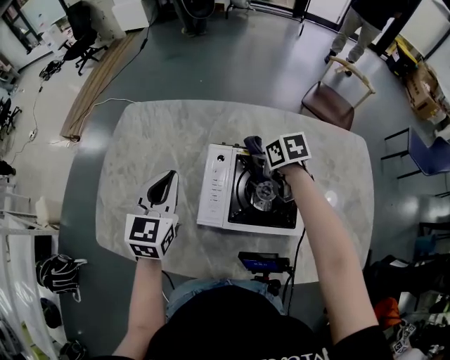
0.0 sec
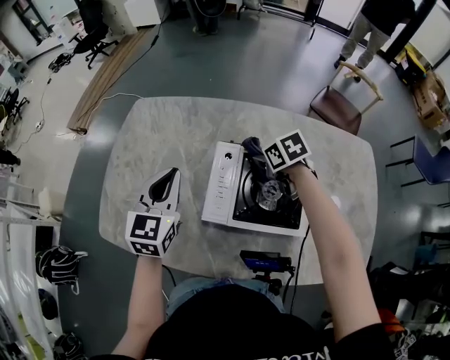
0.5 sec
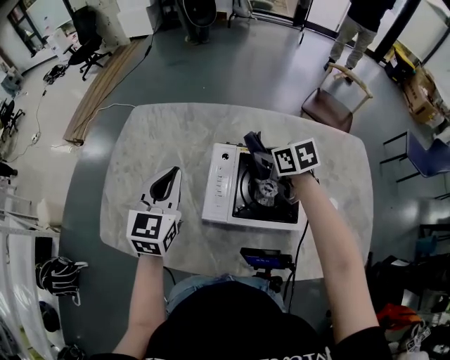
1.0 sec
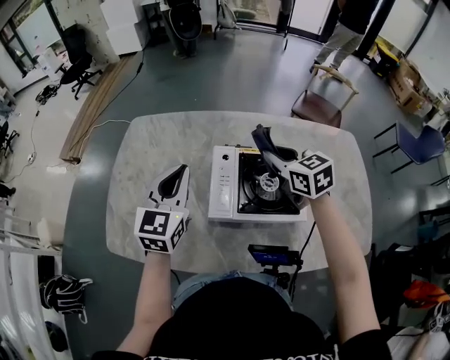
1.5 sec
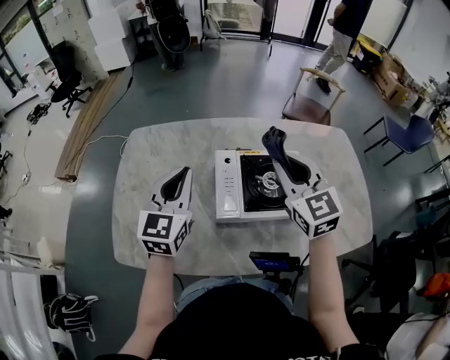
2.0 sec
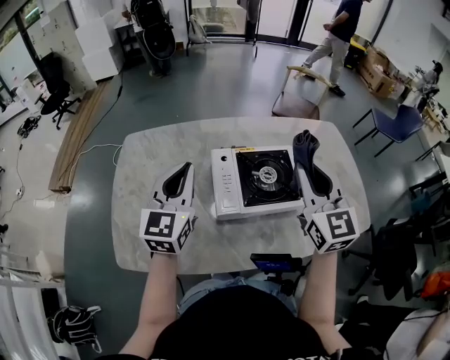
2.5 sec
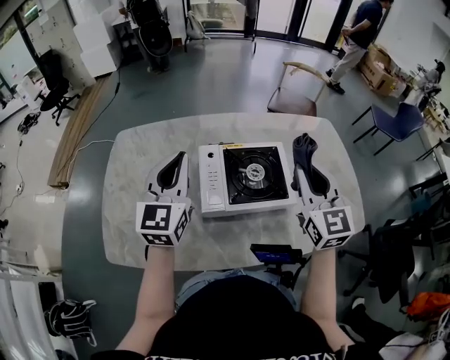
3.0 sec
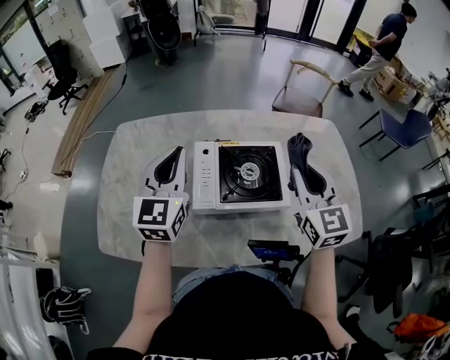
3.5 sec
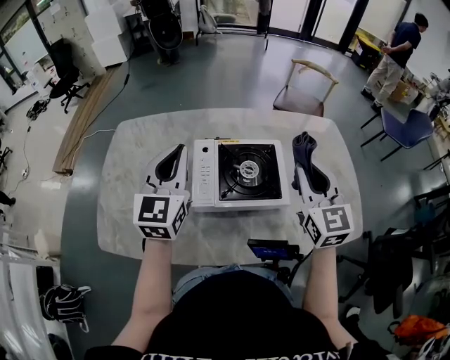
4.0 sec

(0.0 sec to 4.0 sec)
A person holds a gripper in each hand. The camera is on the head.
0.0 sec - 2.0 sec: The right gripper goes approximately 25 cm upward, and angles its fingers upward, by roughly 40 degrees, while the left gripper travels upward by some 5 cm.
2.0 sec - 4.0 sec: The right gripper goes about 15 cm to the right. Meanwhile the left gripper heads to the right, covering approximately 5 cm.

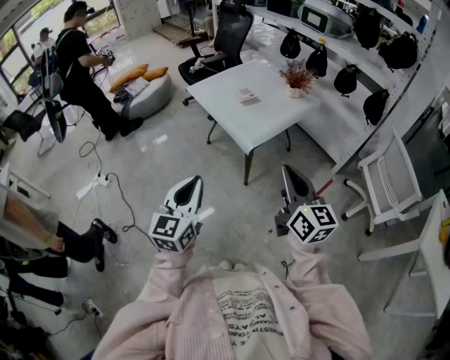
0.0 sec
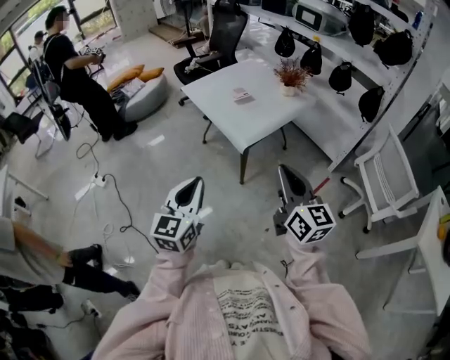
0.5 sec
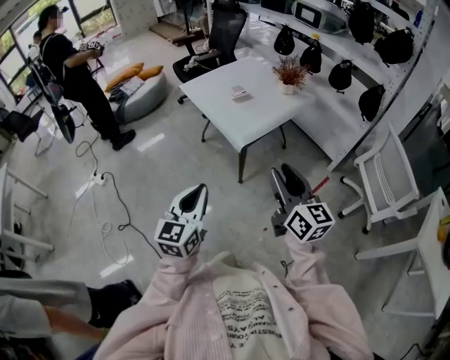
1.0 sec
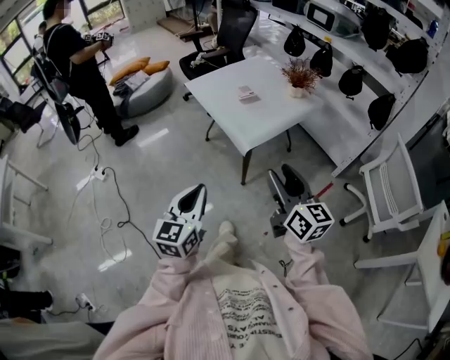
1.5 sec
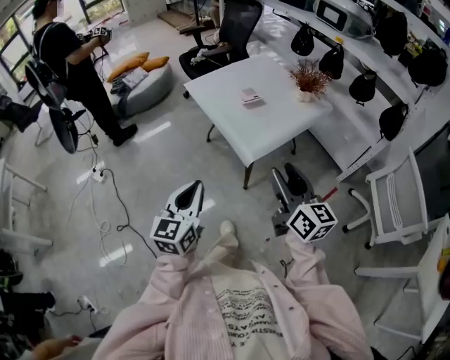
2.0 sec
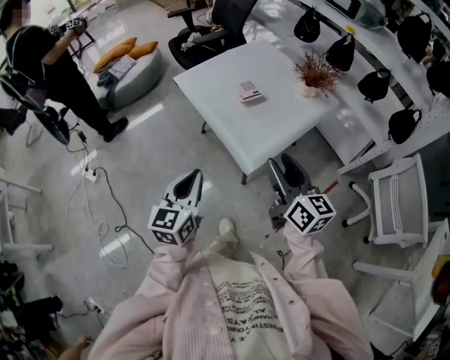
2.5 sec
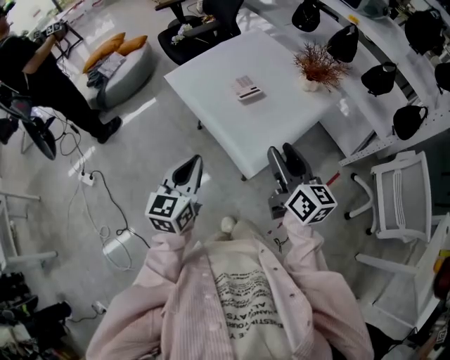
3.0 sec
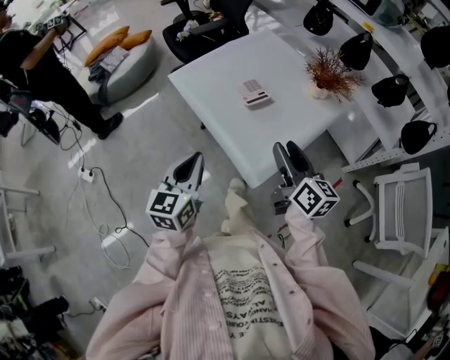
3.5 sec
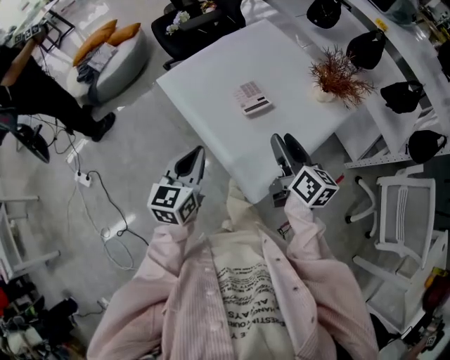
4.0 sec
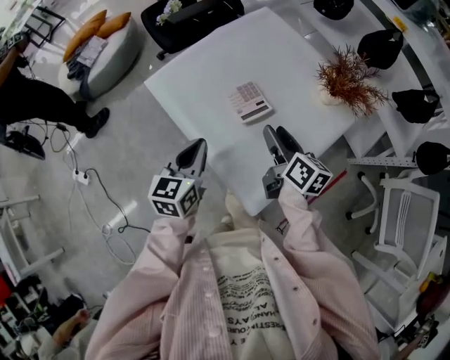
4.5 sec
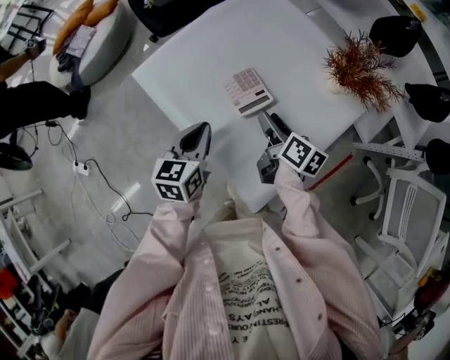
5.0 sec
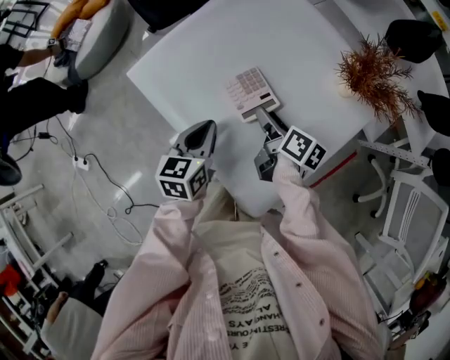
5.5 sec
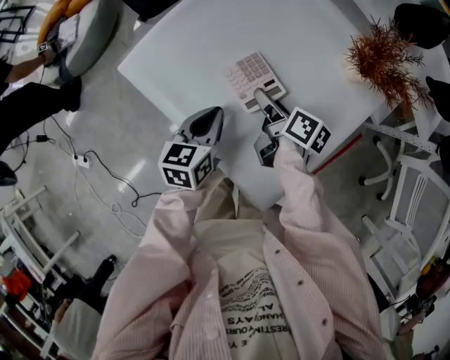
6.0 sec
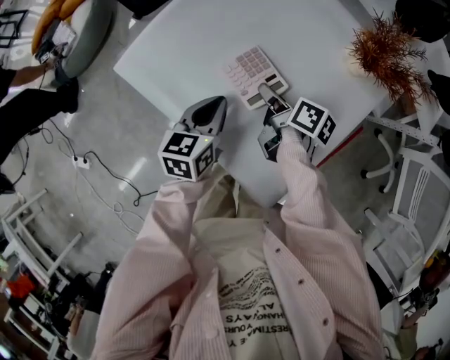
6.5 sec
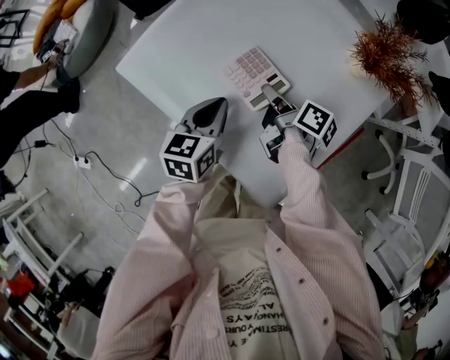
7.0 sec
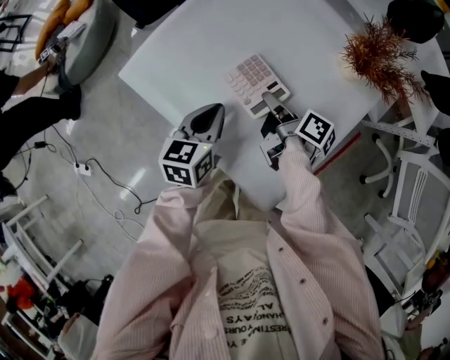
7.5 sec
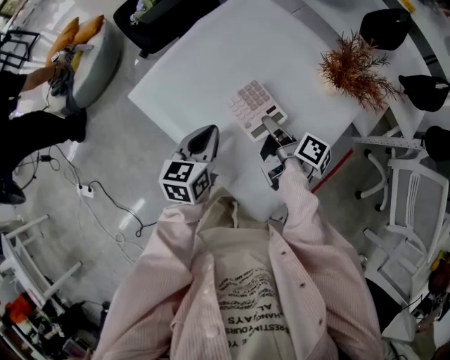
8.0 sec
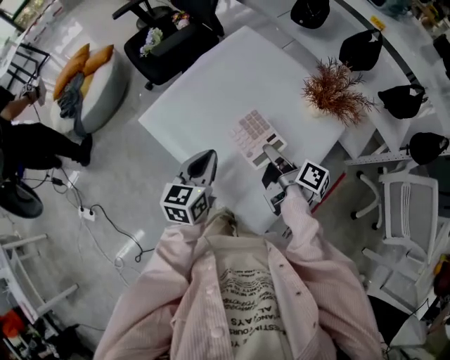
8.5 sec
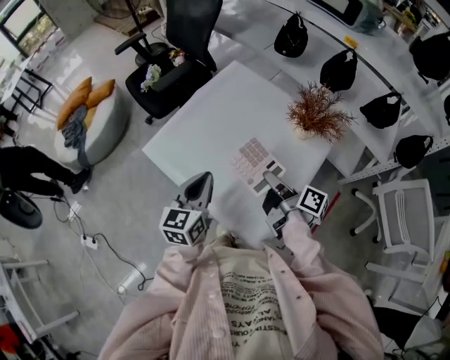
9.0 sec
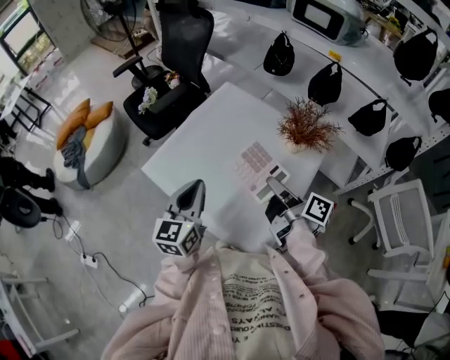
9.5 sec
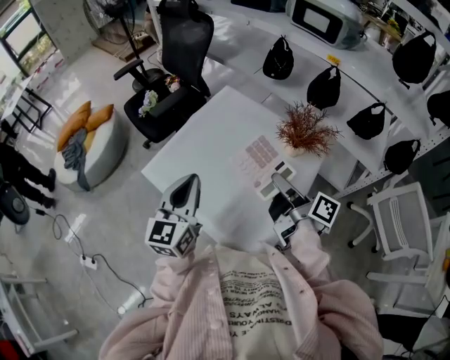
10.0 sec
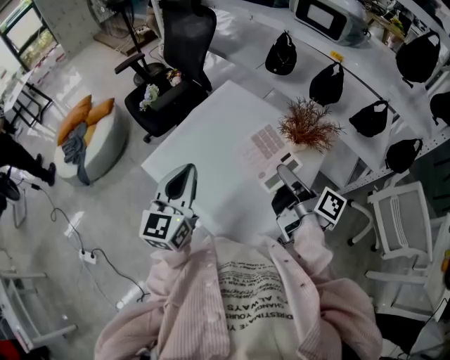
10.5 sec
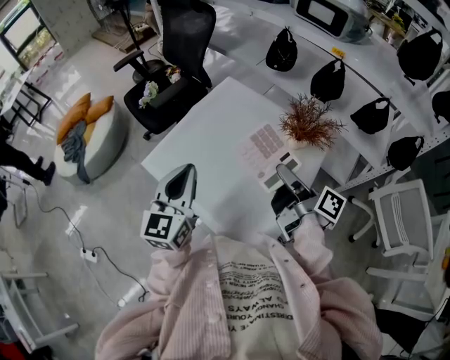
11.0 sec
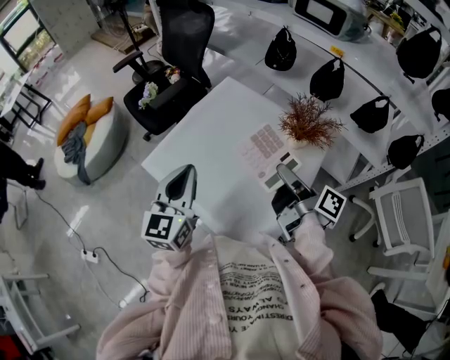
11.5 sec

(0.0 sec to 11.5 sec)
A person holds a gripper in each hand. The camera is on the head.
0.0 sec - 2.0 sec: The two grippers go about 15 cm forward and downward. The right gripper opens its fingers.
2.0 sec - 4.0 sec: The two grippers go approximately 35 cm forward. The right gripper turns by about 20 degrees.
4.0 sec - 6.0 sec: The left gripper travels forward and downward by about 25 cm, and turns by roughly 20 degrees; the right gripper is displaced downward and forward by about 25 cm, and turns by about 30 degrees.
6.0 sec - 7.5 sec: The right gripper closes.
7.5 sec - 9.5 sec: The left gripper is displaced upward by some 20 cm, and swivels approximately 30 degrees. The right gripper moves upward and backward, approximately 25 cm.
9.5 sec - 11.5 sec: The left gripper goes some 5 cm upward.

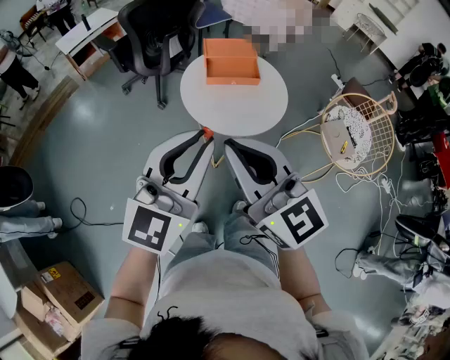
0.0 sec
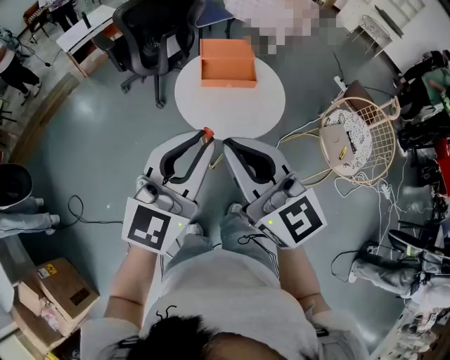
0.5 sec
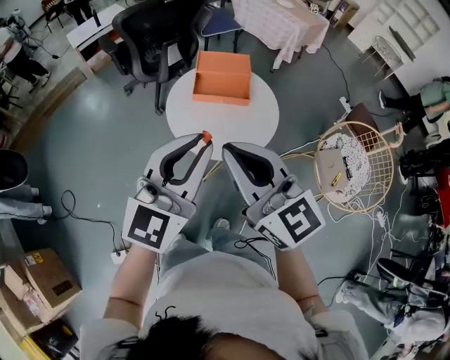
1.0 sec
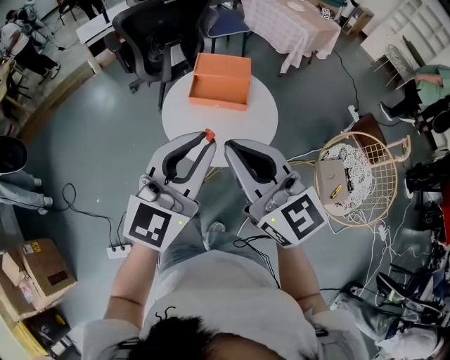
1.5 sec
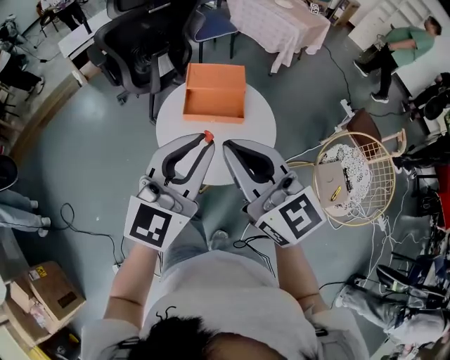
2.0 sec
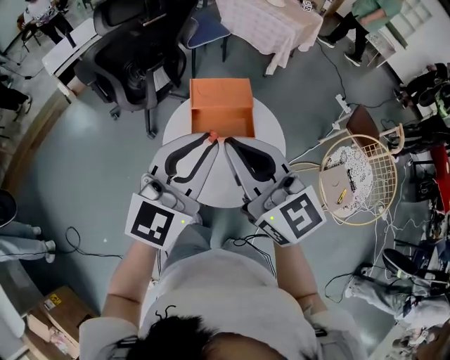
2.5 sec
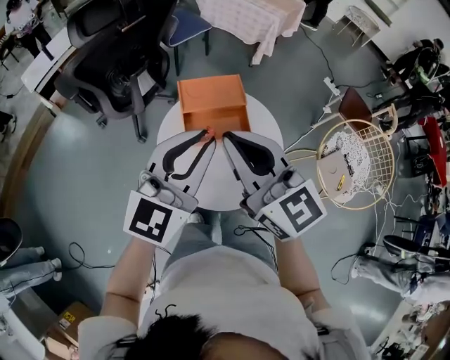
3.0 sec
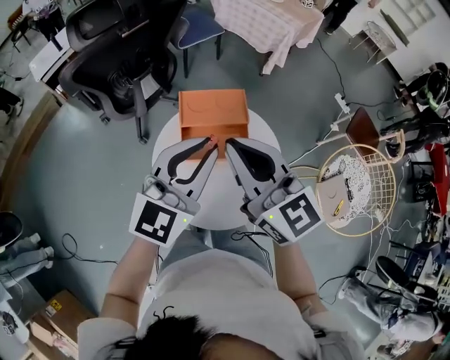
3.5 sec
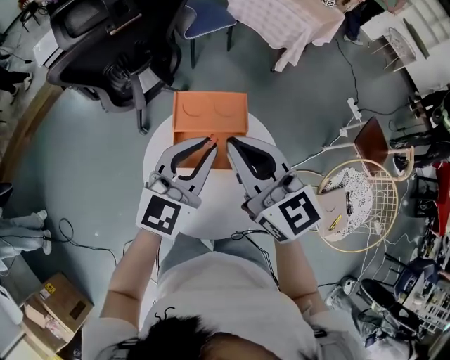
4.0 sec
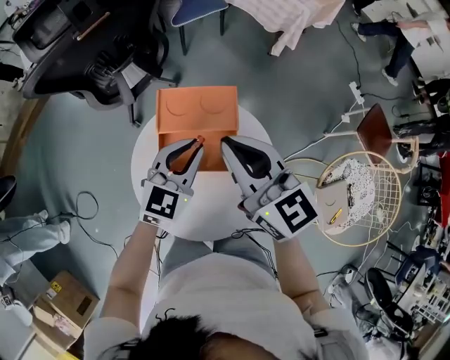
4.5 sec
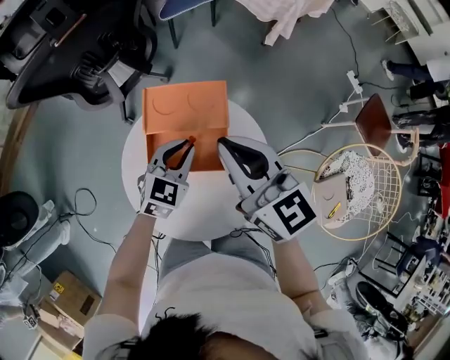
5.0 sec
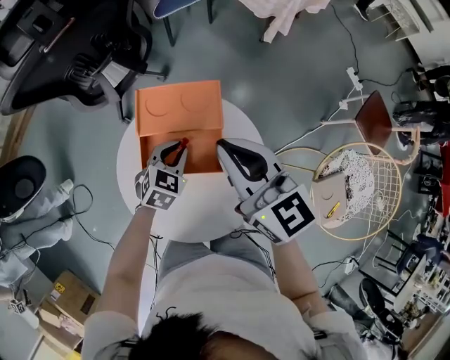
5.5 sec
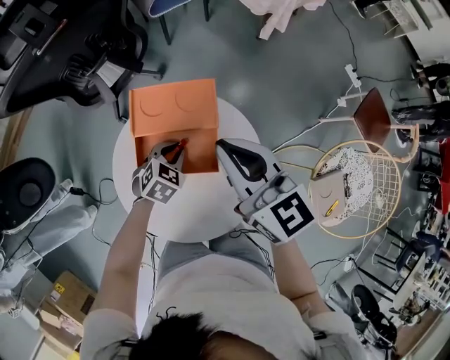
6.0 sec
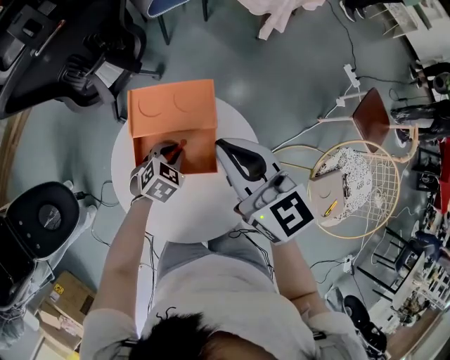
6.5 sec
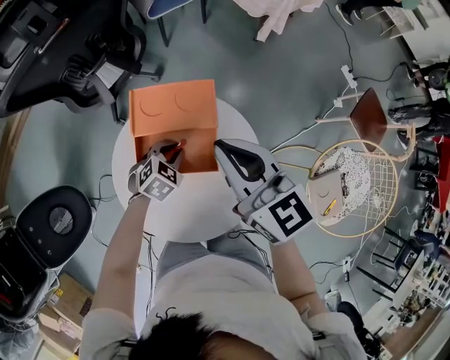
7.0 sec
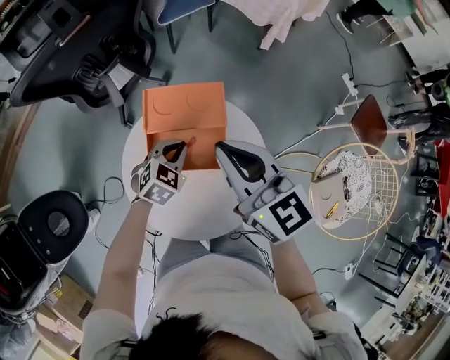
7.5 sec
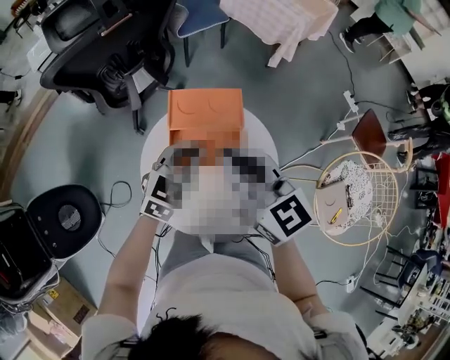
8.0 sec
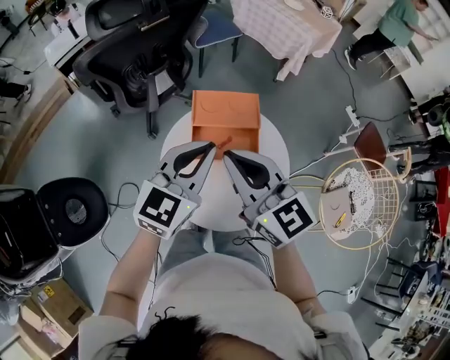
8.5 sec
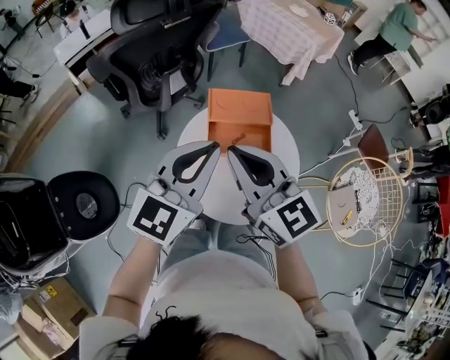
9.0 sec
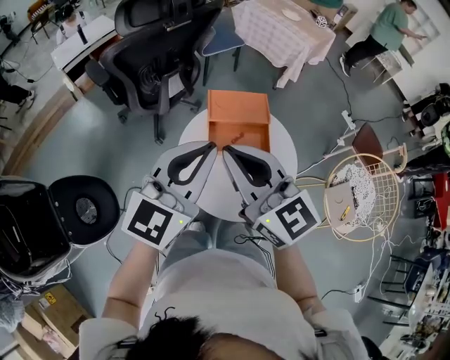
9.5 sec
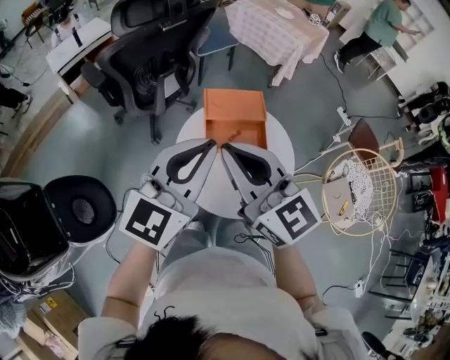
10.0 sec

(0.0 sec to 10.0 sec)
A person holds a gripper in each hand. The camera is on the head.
0.0 sec - 2.0 sec: Both grippers travel together forward and to the right, roughly 20 cm.
2.0 sec - 4.0 sec: The two grippers go some 25 cm forward.
4.0 sec - 6.0 sec: The right gripper shifts some 10 cm to the right and downward; the left gripper heads downward, covering about 30 cm, and angles its fingers downward, by some 50 degrees.
6.0 sec - 8.0 sec: The left gripper travels upward by some 15 cm, and swivels roughly 30 degrees. The right gripper goes roughly 10 cm to the left and backward.
8.0 sec - 10.0 sec: The left gripper is displaced upward, backward and to the left by approximately 30 cm, and tilts its fingers approximately 30 degrees upward. Meanwhile the right gripper moves to the left, backward and upward, roughly 20 cm.

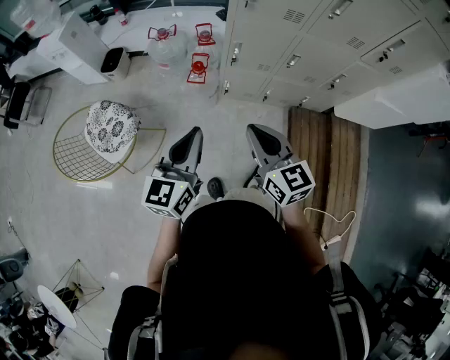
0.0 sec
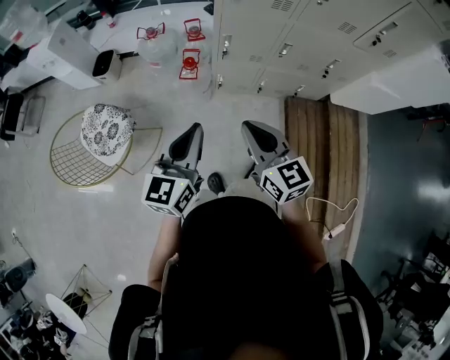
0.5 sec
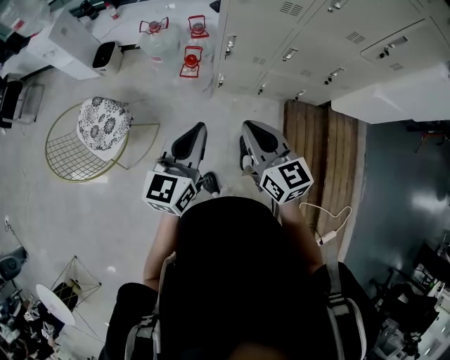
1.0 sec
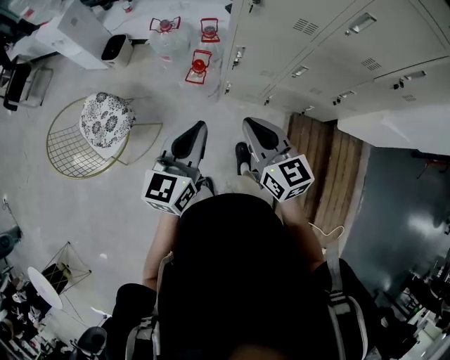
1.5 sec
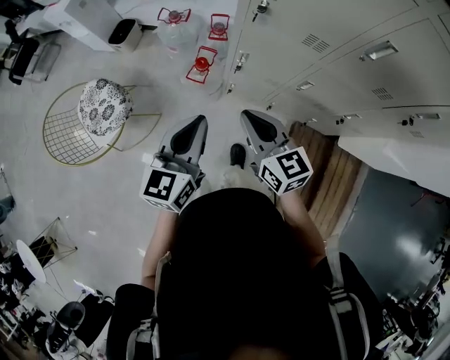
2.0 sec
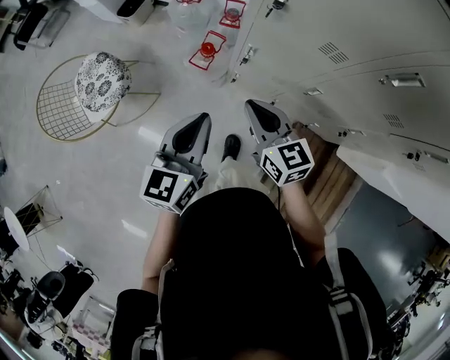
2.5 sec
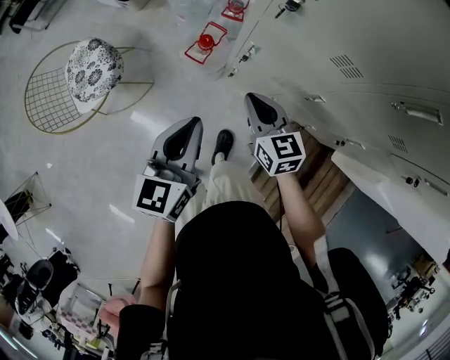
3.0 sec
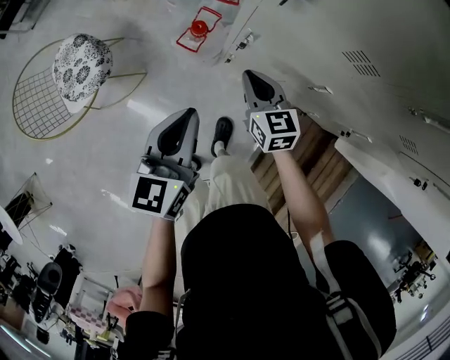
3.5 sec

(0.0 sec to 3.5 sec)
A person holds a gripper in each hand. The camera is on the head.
0.0 sec - 2.0 sec: The left gripper moves forward and to the right, about 20 cm, while the right gripper goes about 20 cm forward.
2.0 sec - 3.5 sec: The right gripper is displaced downward and forward by approximately 25 cm; the left gripper shifts some 10 cm downward and forward.
